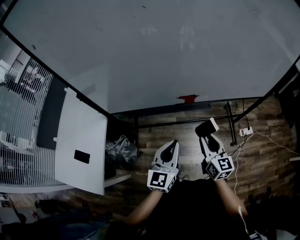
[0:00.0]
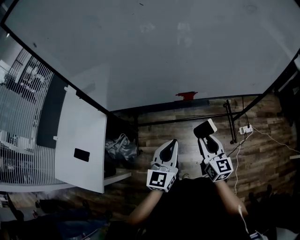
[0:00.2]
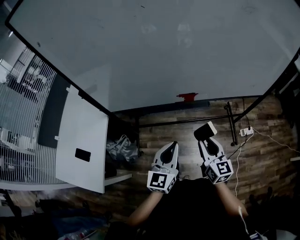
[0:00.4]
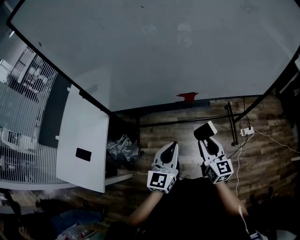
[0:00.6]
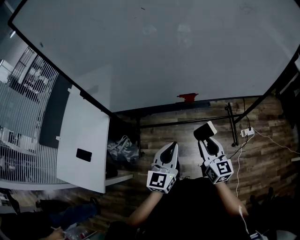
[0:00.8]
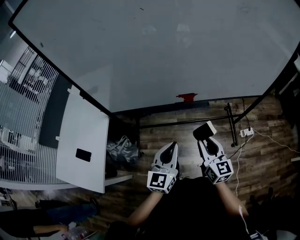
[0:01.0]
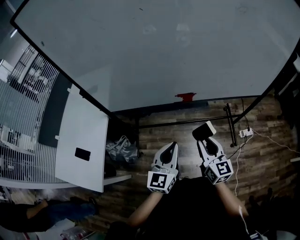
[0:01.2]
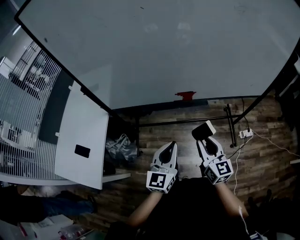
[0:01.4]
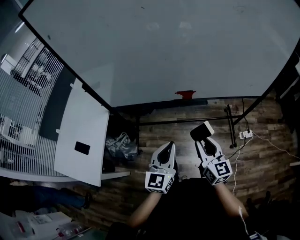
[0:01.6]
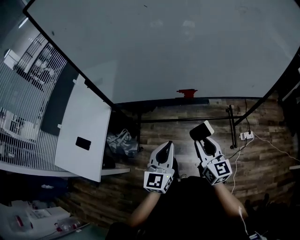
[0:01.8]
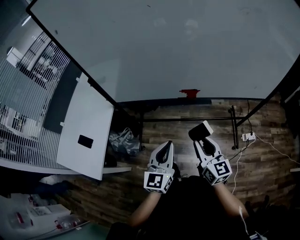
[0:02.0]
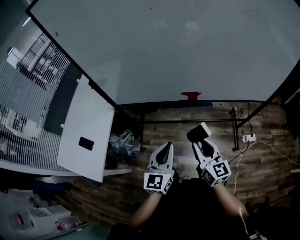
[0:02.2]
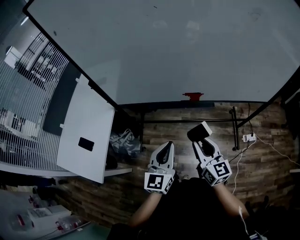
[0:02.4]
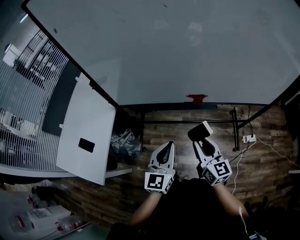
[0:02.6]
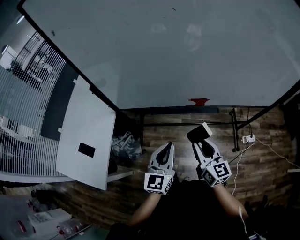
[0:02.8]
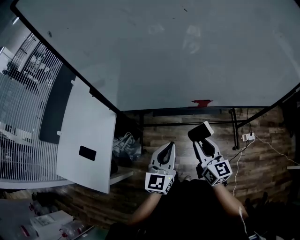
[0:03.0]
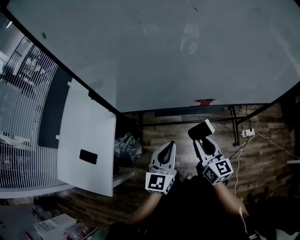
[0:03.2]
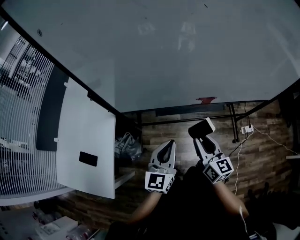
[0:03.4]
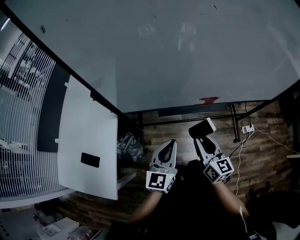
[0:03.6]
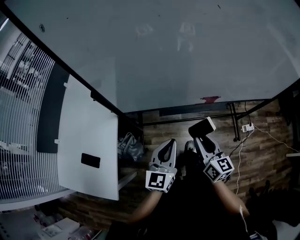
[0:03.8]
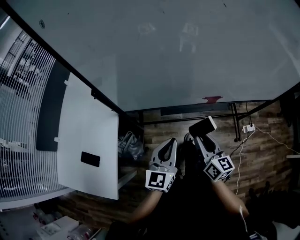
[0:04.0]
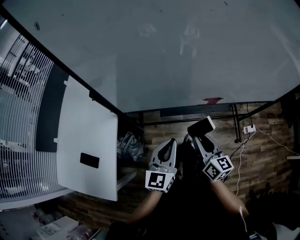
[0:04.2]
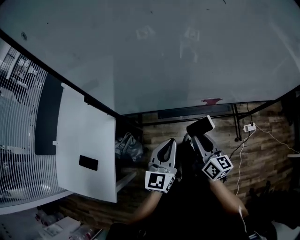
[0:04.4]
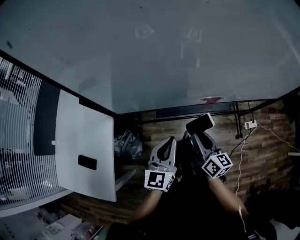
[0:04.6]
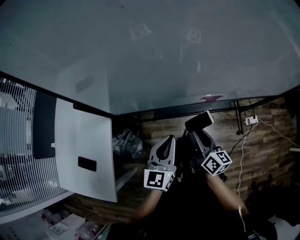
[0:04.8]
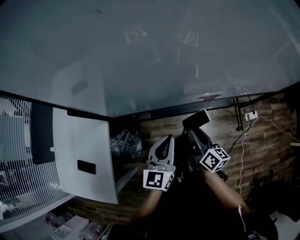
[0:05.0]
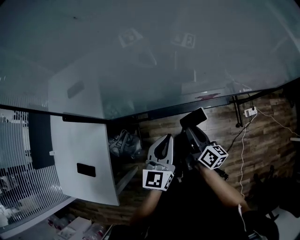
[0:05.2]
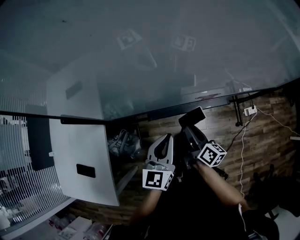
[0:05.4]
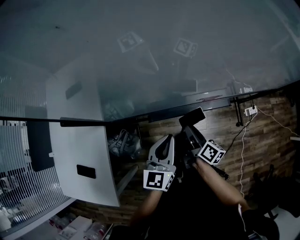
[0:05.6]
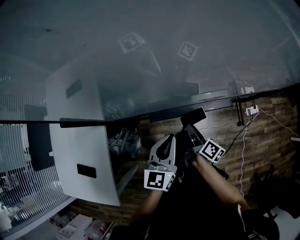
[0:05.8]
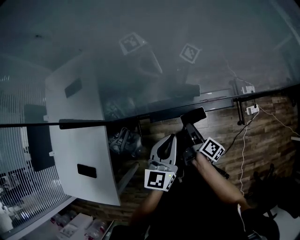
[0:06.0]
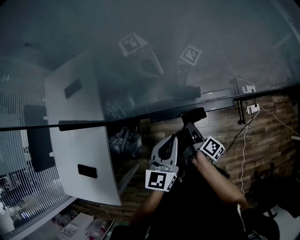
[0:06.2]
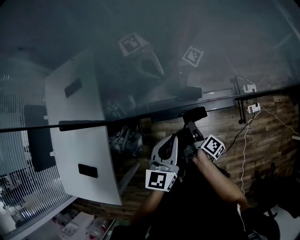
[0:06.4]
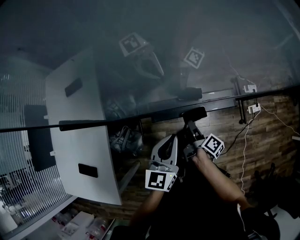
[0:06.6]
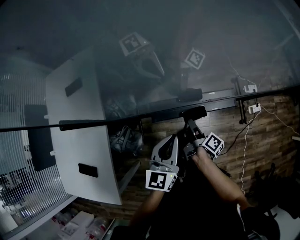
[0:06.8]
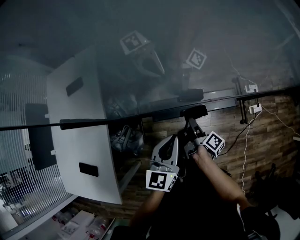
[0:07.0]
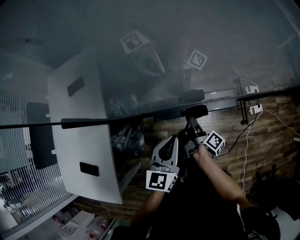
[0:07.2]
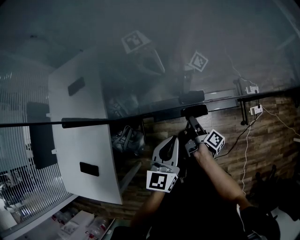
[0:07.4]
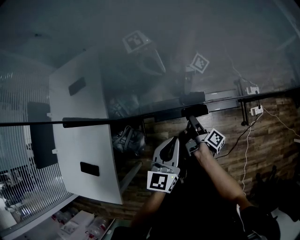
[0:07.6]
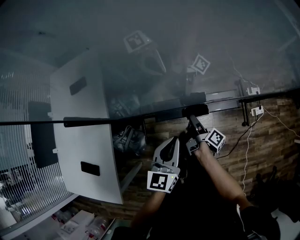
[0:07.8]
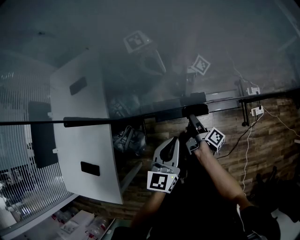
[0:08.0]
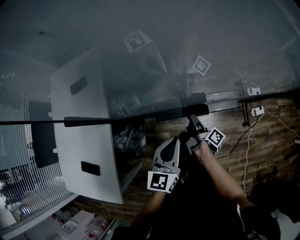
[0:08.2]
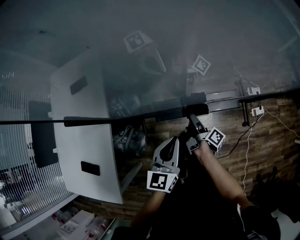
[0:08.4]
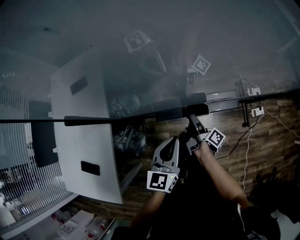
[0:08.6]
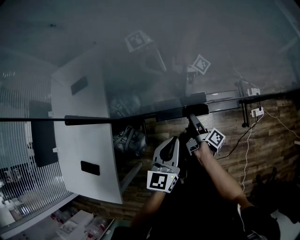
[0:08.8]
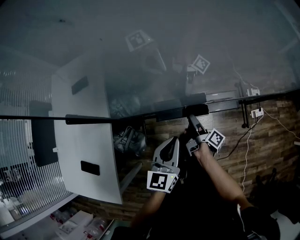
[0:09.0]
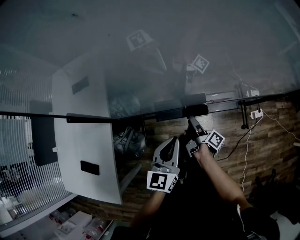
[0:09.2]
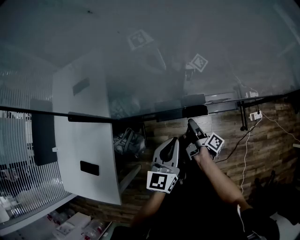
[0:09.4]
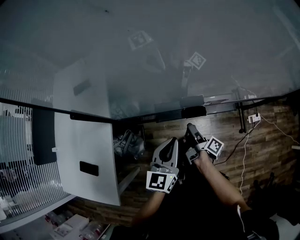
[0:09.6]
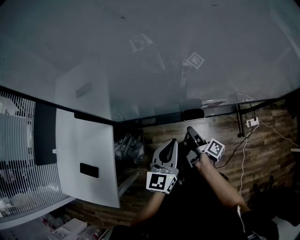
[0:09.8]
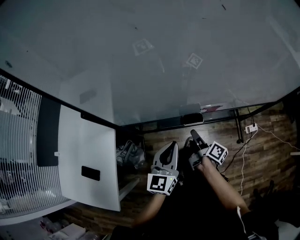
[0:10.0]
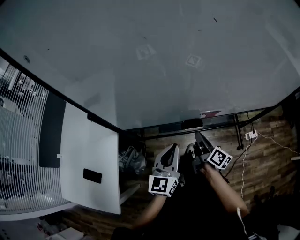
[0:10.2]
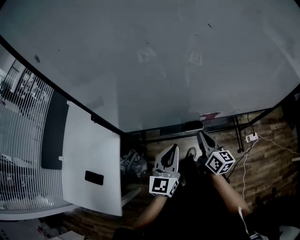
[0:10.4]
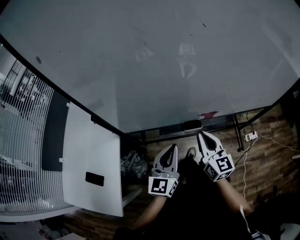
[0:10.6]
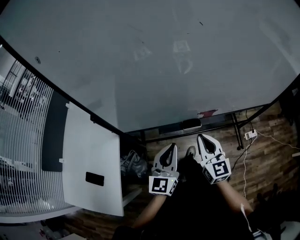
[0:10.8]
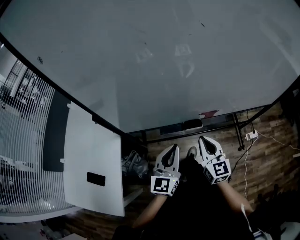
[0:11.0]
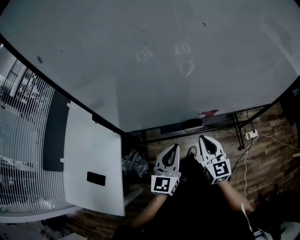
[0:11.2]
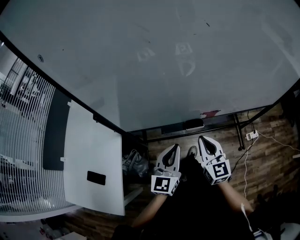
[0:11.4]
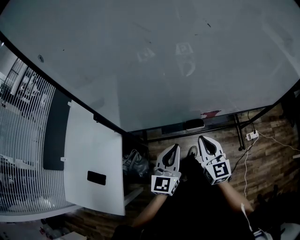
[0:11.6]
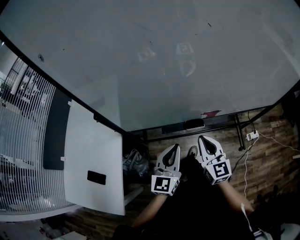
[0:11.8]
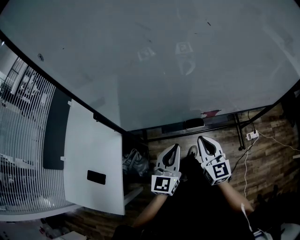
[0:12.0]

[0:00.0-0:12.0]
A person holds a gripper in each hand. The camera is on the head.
0.0 to 1.6 s: The grippers both shift backward by approximately 5 cm.
1.6 to 3.0 s: Both grippers move to the left and forward, some 10 cm.
3.0 to 4.4 s: The right gripper changes place by some 10 cm, while the left gripper shifts roughly 5 cm forward.
4.4 to 6.0 s: The left gripper shifts some 5 cm forward, while the right gripper travels downward and forward by about 15 cm, and twists roughly 40 degrees clockwise, seen from behind.
6.0 to 9.0 s: The grippers move only a little.
9.0 to 10.4 s: The right gripper is displaced upward by some 20 cm, rotates around the line of its fingers by some 60 degrees, counterclockwise from behind, and closes, while the left gripper travels upward by some 10 cm.
10.4 to 12.0 s: The right gripper ends up some 5 cm from where it was, and turns by about 30 degrees.

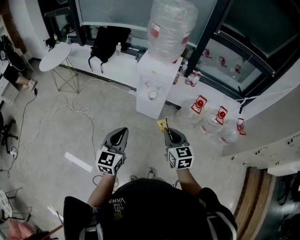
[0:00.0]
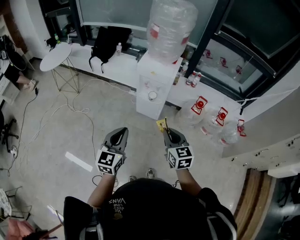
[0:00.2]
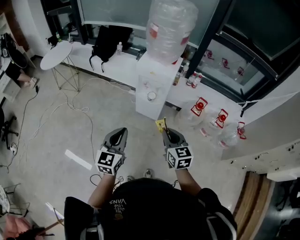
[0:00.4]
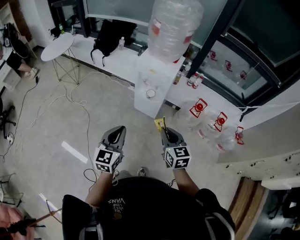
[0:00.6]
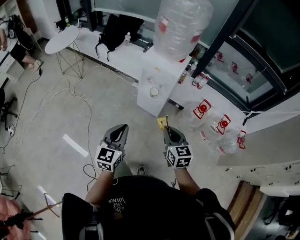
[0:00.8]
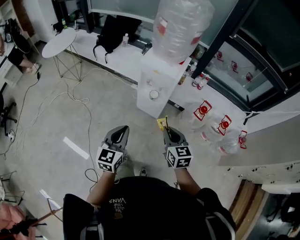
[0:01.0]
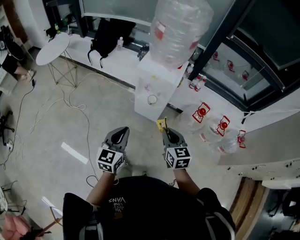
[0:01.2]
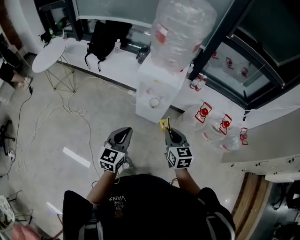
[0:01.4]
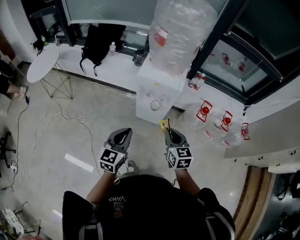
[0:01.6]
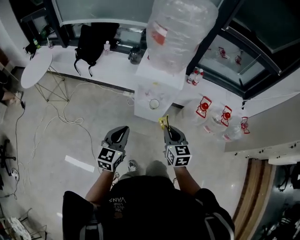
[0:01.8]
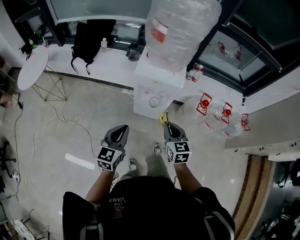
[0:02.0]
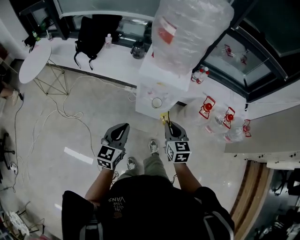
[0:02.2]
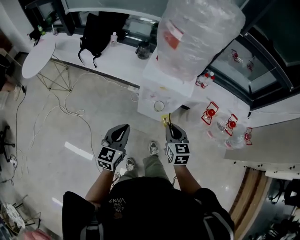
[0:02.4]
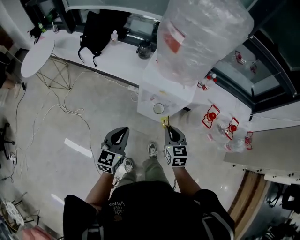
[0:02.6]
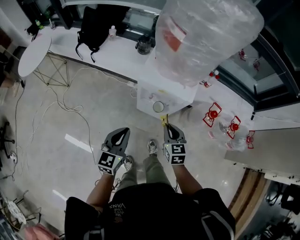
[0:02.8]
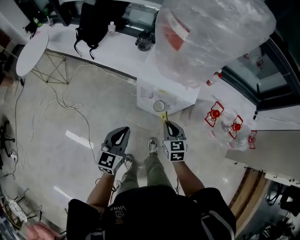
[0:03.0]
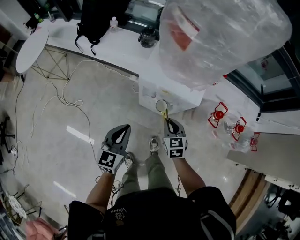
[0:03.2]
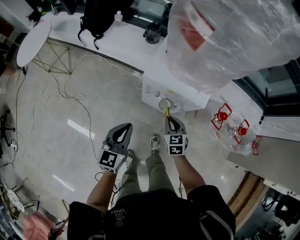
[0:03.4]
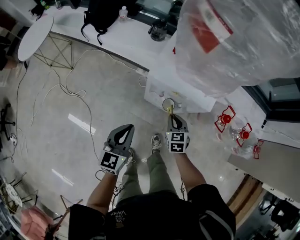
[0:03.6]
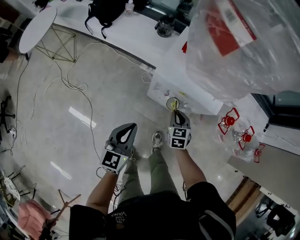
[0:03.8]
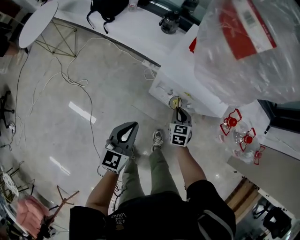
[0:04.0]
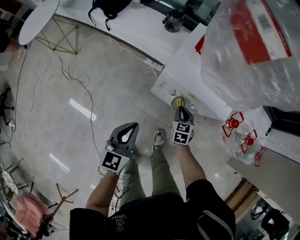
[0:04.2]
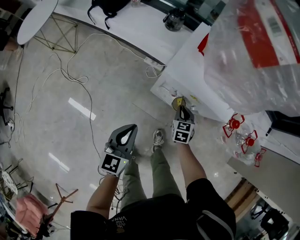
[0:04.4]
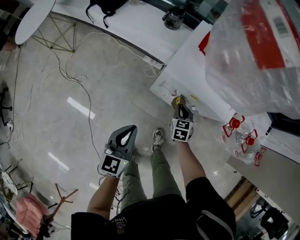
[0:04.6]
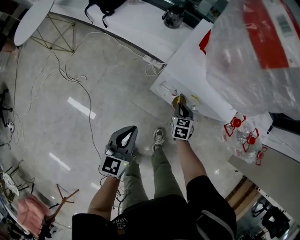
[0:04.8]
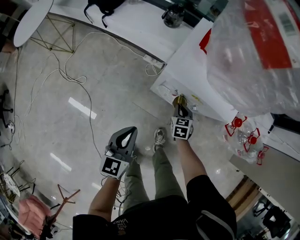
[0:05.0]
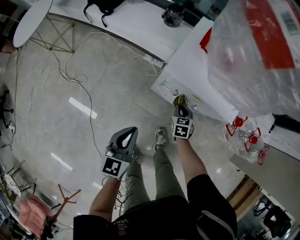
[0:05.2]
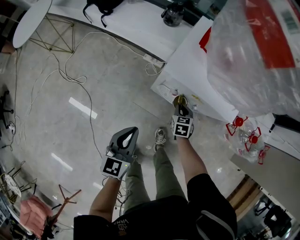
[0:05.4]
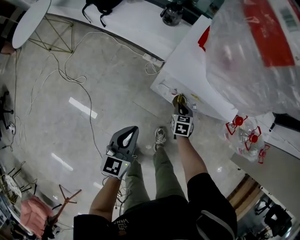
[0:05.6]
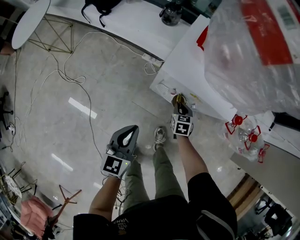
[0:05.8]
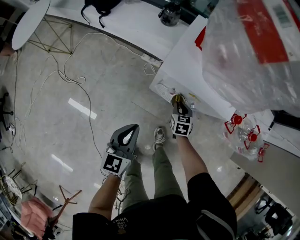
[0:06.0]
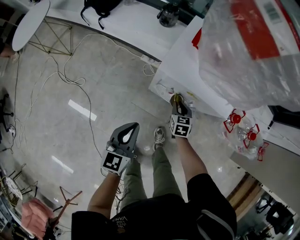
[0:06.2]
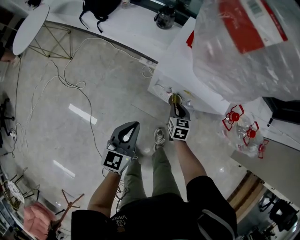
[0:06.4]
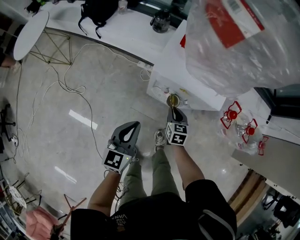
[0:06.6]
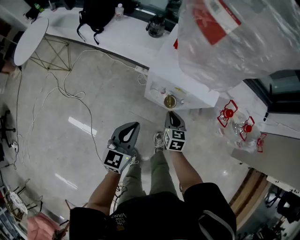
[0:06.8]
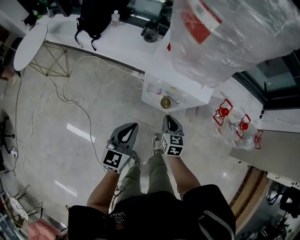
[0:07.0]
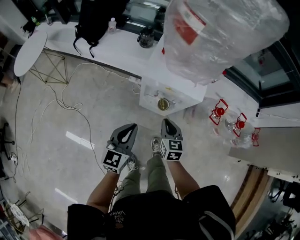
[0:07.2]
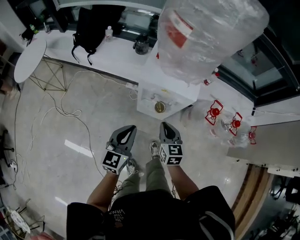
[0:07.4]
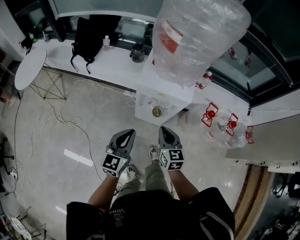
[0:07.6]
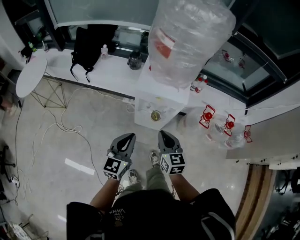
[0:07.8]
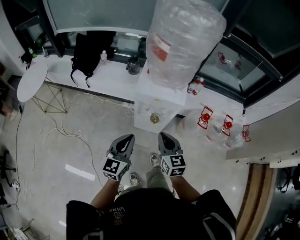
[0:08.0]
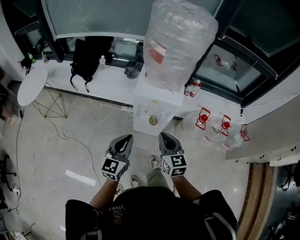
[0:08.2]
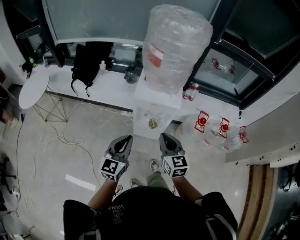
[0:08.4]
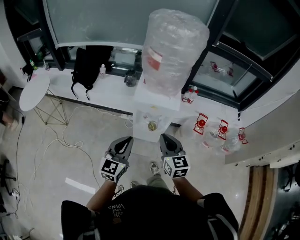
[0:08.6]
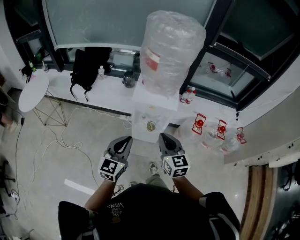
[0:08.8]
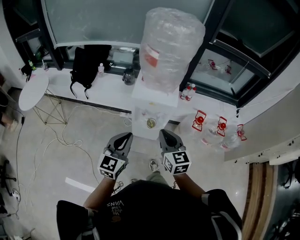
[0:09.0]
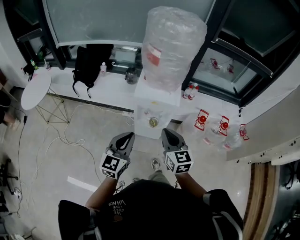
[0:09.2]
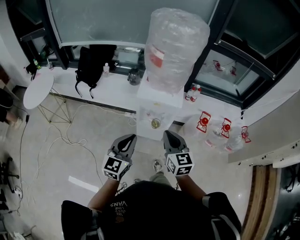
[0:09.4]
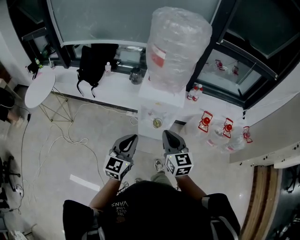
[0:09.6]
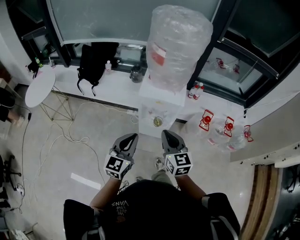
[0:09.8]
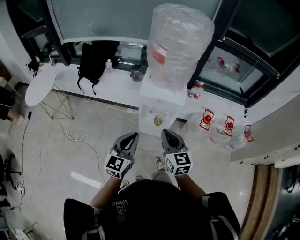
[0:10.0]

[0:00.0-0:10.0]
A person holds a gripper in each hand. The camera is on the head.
0.0 to 1.4 s: Both grippers travel together forward, some 20 cm.
1.4 to 2.8 s: Both grippers move forward and downward, roughly 20 cm.
2.8 to 4.2 s: The left gripper travels downward and forward by about 15 cm; the right gripper moves downward and forward, about 25 cm.
4.2 to 5.8 s: The right gripper heads downward, covering some 10 cm.
5.8 to 7.2 s: The right gripper travels upward and backward by approximately 25 cm, and changes its angle by about 20 degrees, while the left gripper is displaced upward by some 10 cm.
7.2 to 8.6 s: Both grippers travel together upward and backward, some 25 cm.
8.6 to 10.0 s: The grippers make only small movements.

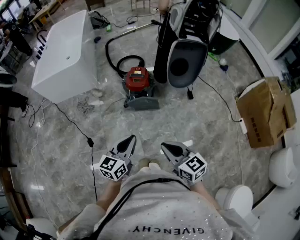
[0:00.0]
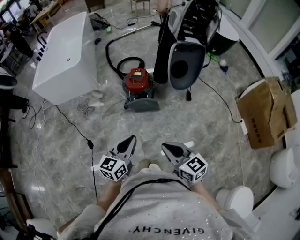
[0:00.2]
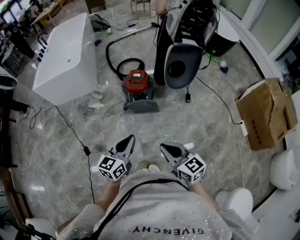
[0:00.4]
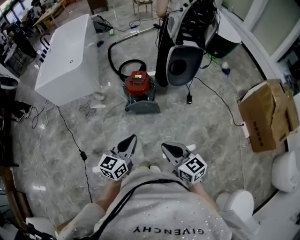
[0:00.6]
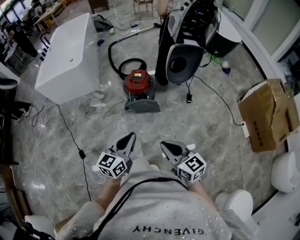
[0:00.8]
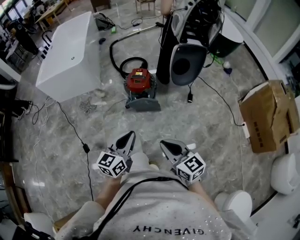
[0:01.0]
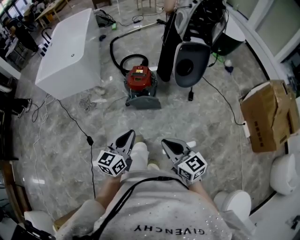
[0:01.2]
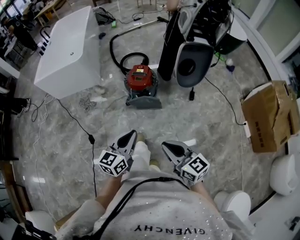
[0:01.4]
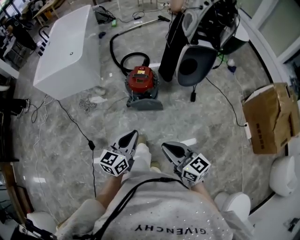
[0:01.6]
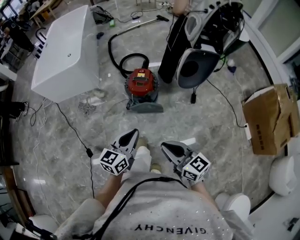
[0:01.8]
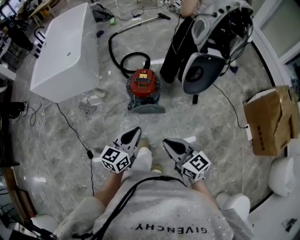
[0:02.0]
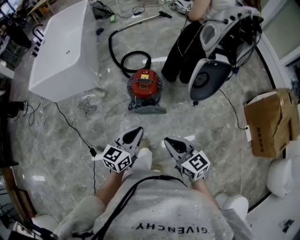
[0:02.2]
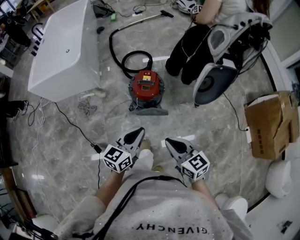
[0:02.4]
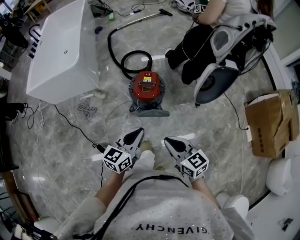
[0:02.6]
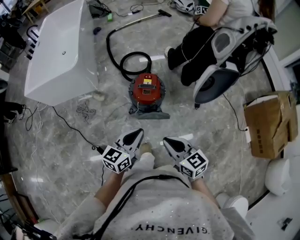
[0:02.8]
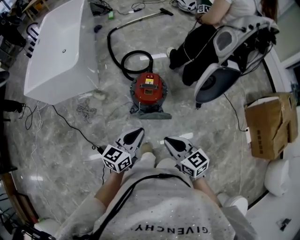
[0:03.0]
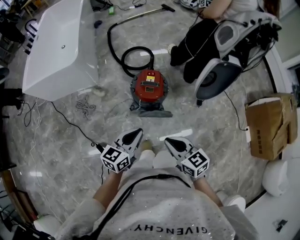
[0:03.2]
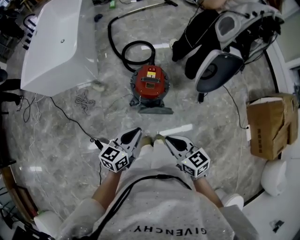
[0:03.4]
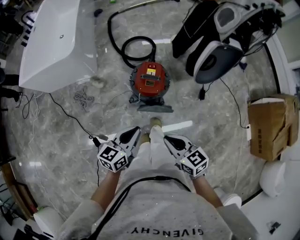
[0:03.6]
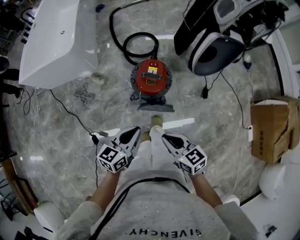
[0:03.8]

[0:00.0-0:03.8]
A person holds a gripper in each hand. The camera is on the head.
0.0 to 1.2 s: The grippers stay close to where they were, moving slightly.
1.2 to 2.6 s: The grippers both shift forward by roughly 20 cm.
2.6 to 3.8 s: Both grippers travel together downward and forward, some 10 cm.
